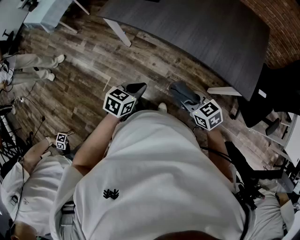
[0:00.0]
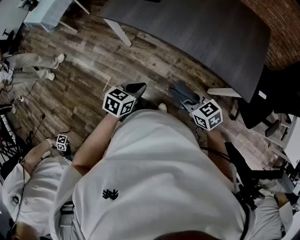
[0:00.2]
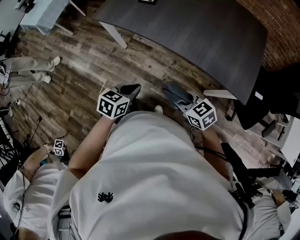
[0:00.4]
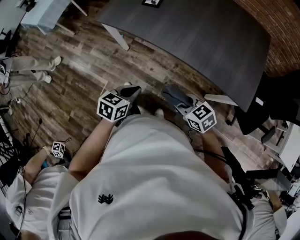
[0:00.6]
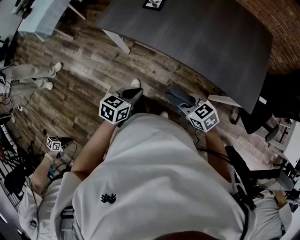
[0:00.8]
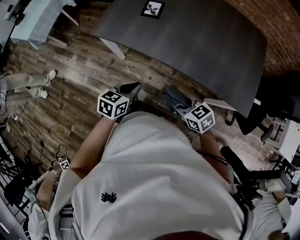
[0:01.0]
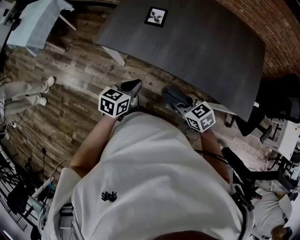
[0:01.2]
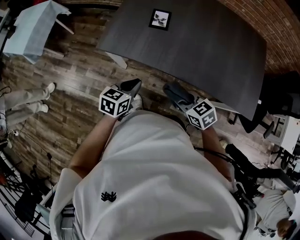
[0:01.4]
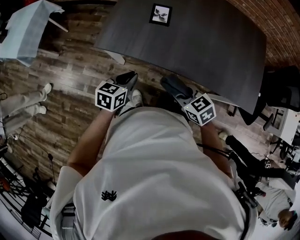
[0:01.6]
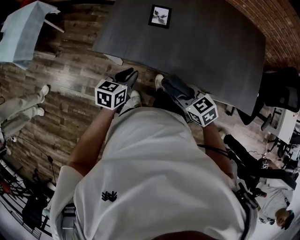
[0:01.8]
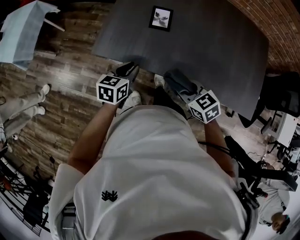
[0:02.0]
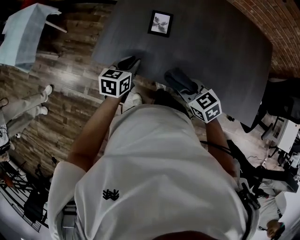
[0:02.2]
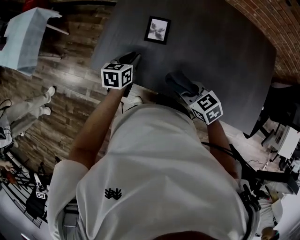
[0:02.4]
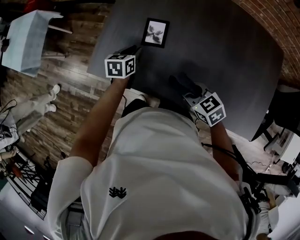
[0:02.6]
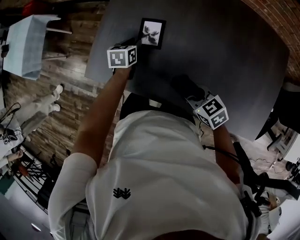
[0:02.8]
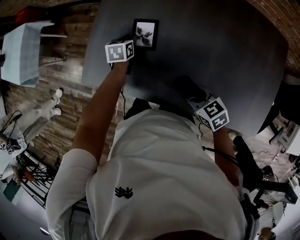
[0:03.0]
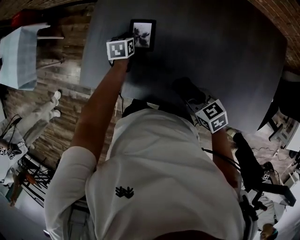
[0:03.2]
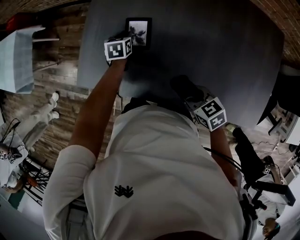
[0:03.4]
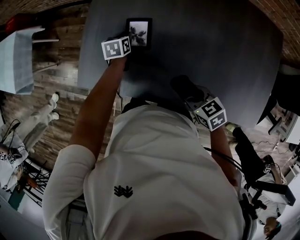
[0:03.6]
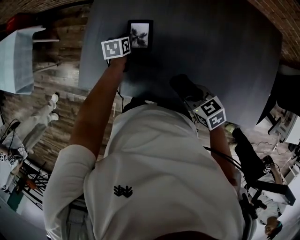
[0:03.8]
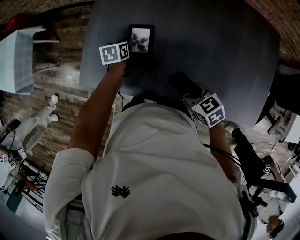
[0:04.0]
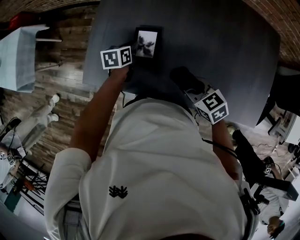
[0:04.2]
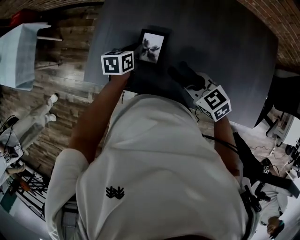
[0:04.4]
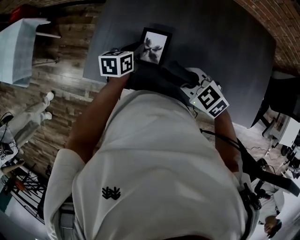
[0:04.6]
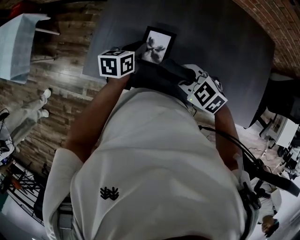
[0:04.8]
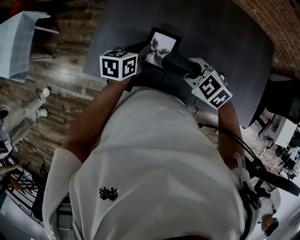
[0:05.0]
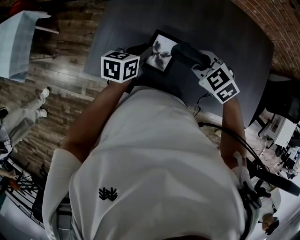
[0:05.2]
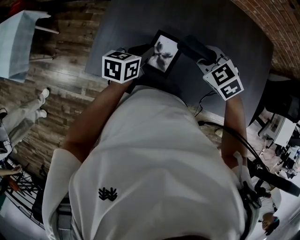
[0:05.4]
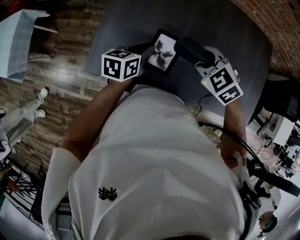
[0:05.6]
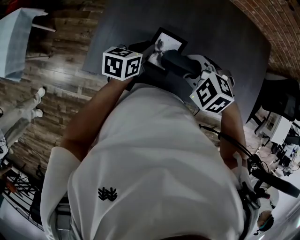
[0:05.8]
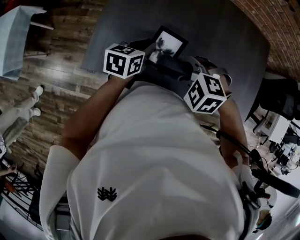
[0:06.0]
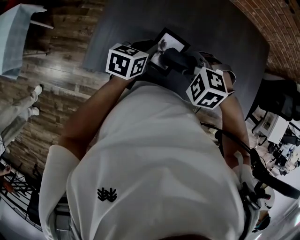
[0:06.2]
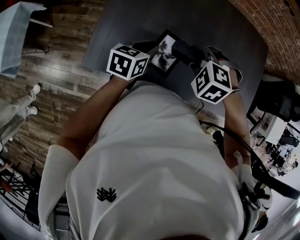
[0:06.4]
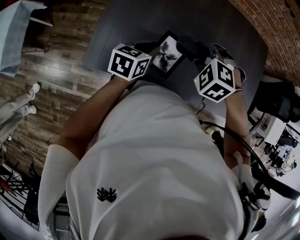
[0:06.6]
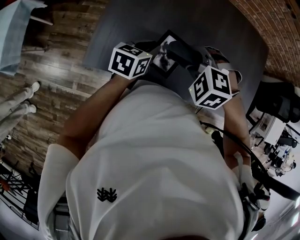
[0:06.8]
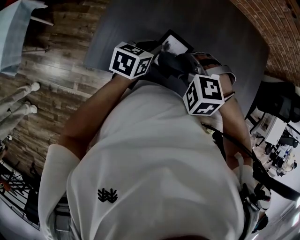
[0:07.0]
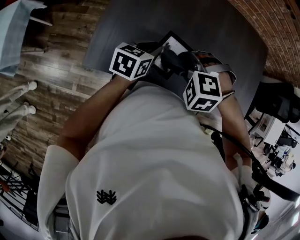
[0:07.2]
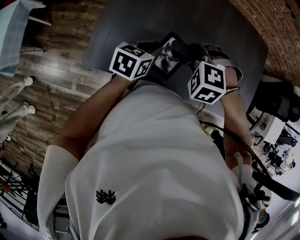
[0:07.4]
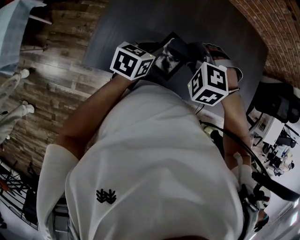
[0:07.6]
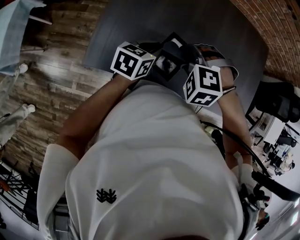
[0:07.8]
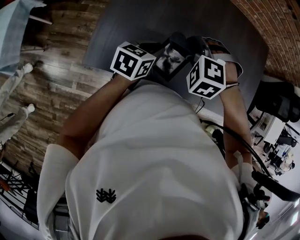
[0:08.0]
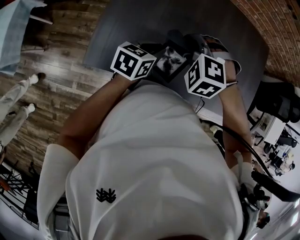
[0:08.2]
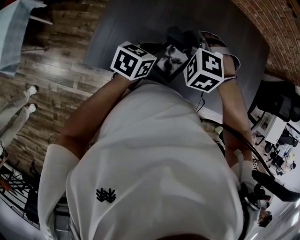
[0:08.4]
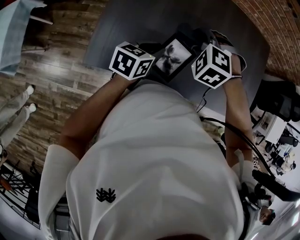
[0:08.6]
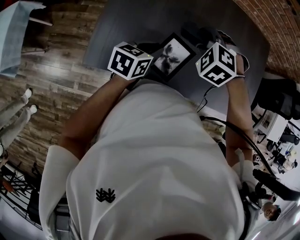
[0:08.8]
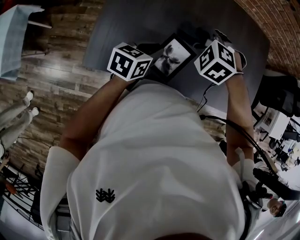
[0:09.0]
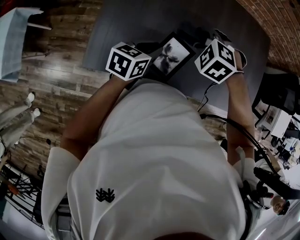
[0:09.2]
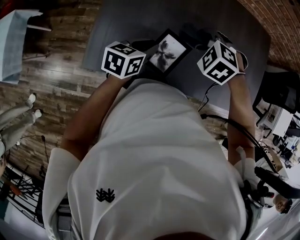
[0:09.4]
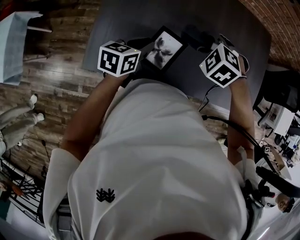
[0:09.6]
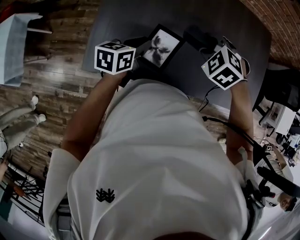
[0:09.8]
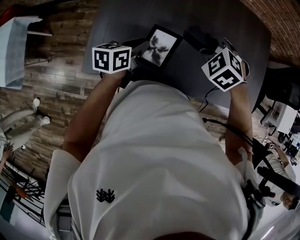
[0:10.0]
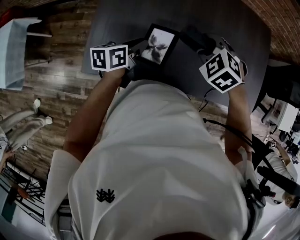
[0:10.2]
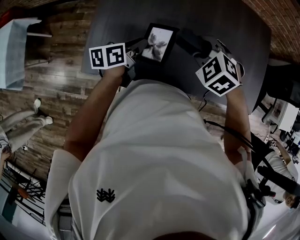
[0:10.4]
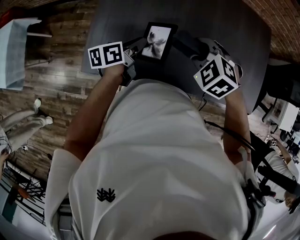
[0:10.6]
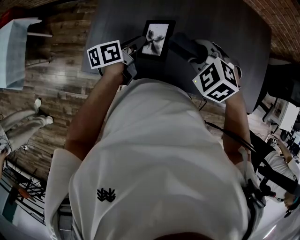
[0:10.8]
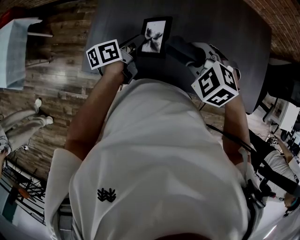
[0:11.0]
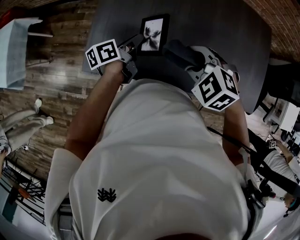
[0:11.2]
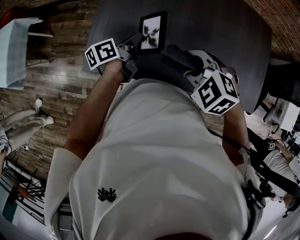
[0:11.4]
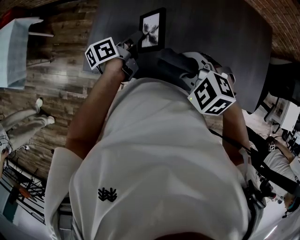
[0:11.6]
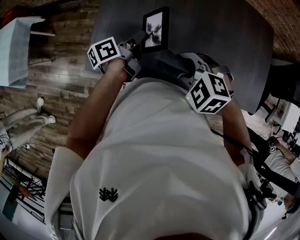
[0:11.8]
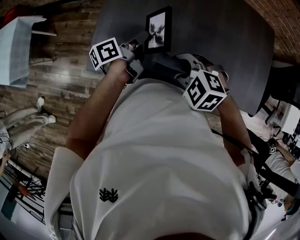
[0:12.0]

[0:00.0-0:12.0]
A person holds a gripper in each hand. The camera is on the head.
0:00.0 to 0:01.6: Both grippers travel together forward and to the left, roughly 40 cm.
0:01.6 to 0:03.0: The left gripper moves forward, about 40 cm, and changes its angle by roughly 30 degrees; the right gripper goes roughly 25 cm forward and to the right.
0:03.0 to 0:04.4: The left gripper heads backward and upward, covering some 10 cm; the right gripper shifts about 5 cm upward.
0:04.4 to 0:06.0: The right gripper shifts approximately 10 cm to the left, and rotates around the line of its fingers by some 40 degrees, counterclockwise from behind. Meanwhile the left gripper moves upward and backward, approximately 10 cm.
0:06.0 to 0:07.6: The right gripper changes place by some 5 cm.
0:07.6 to 0:09.0: The right gripper heads forward, covering approximately 5 cm.
0:09.0 to 0:10.4: The right gripper shifts by approximately 5 cm. The left gripper swivels some 30 degrees.
0:10.4 to 0:12.0: The left gripper turns by some 30 degrees. Meanwhile the right gripper moves backward and to the left, some 10 cm.

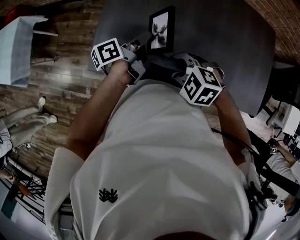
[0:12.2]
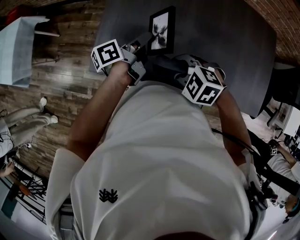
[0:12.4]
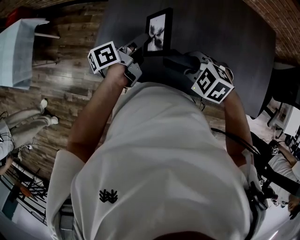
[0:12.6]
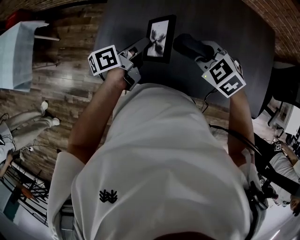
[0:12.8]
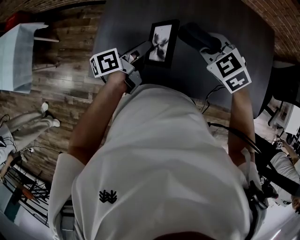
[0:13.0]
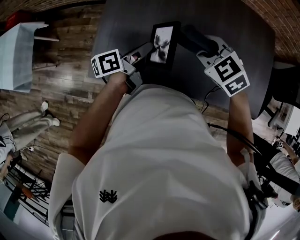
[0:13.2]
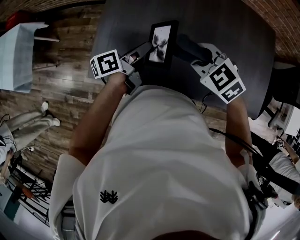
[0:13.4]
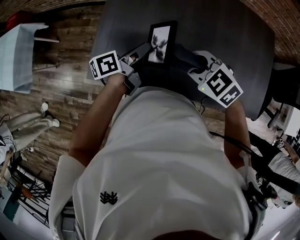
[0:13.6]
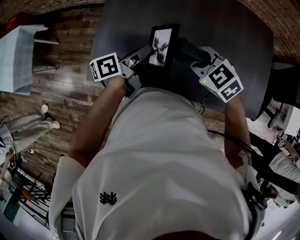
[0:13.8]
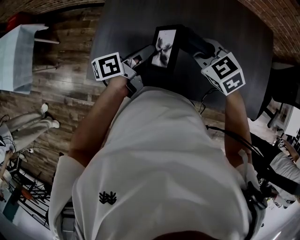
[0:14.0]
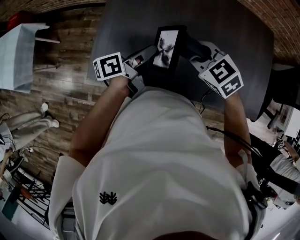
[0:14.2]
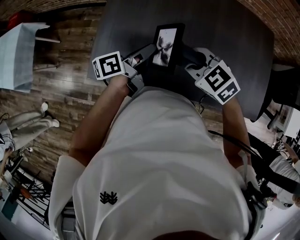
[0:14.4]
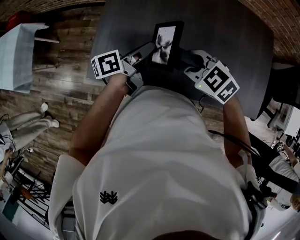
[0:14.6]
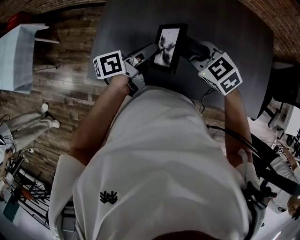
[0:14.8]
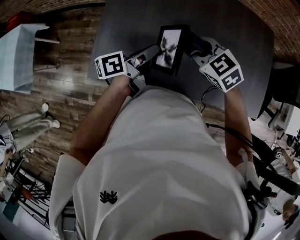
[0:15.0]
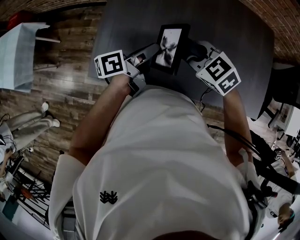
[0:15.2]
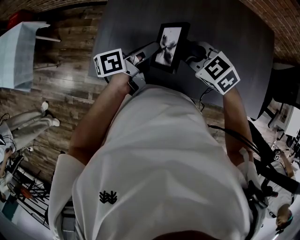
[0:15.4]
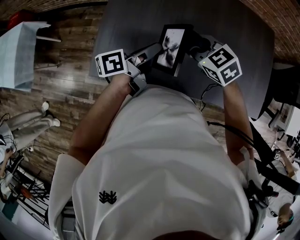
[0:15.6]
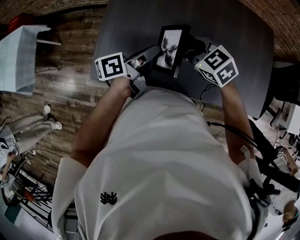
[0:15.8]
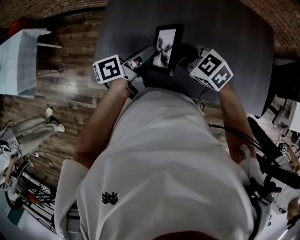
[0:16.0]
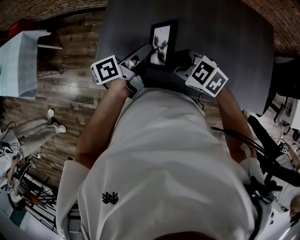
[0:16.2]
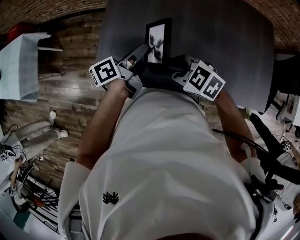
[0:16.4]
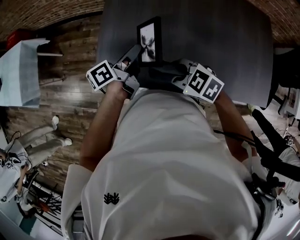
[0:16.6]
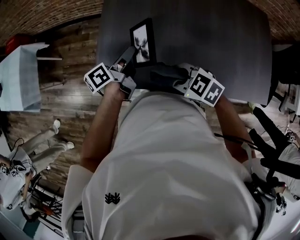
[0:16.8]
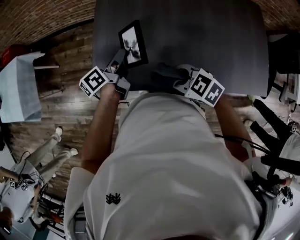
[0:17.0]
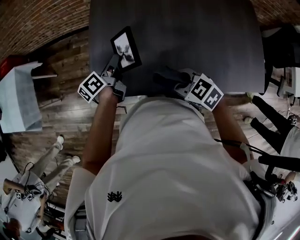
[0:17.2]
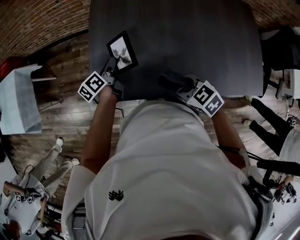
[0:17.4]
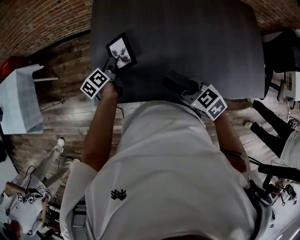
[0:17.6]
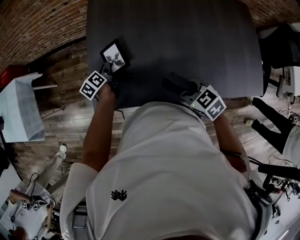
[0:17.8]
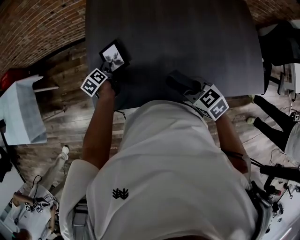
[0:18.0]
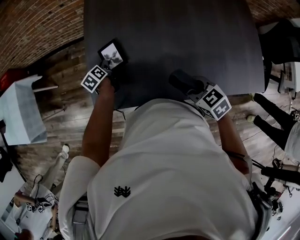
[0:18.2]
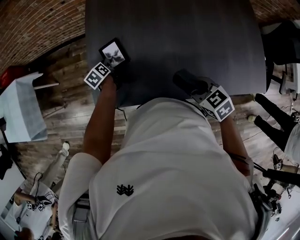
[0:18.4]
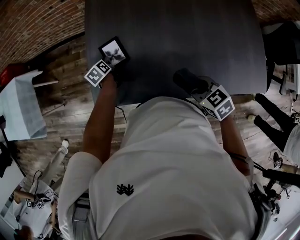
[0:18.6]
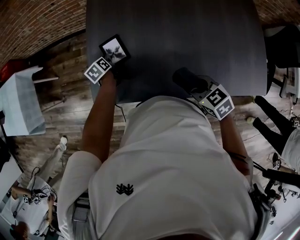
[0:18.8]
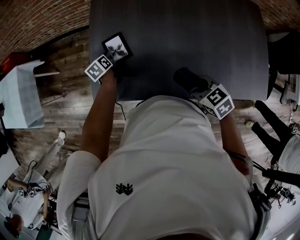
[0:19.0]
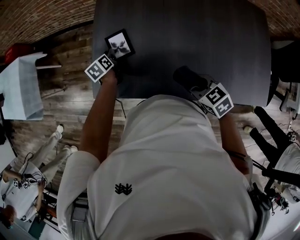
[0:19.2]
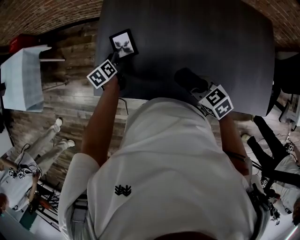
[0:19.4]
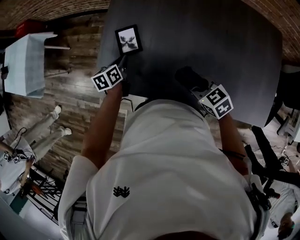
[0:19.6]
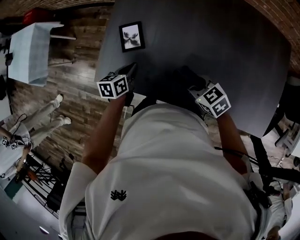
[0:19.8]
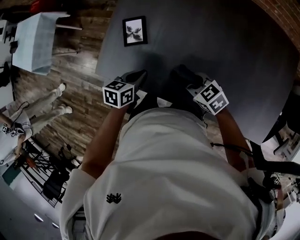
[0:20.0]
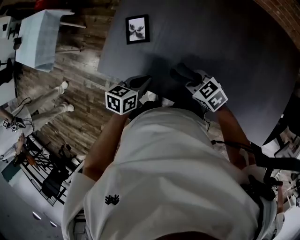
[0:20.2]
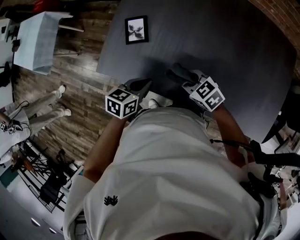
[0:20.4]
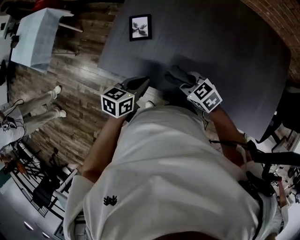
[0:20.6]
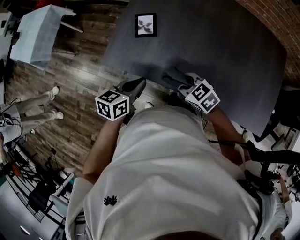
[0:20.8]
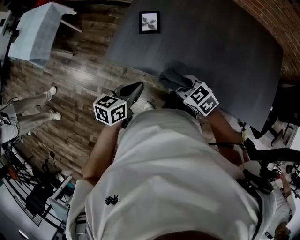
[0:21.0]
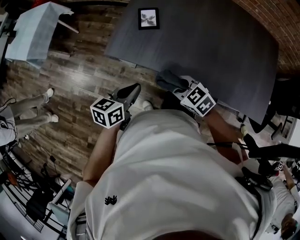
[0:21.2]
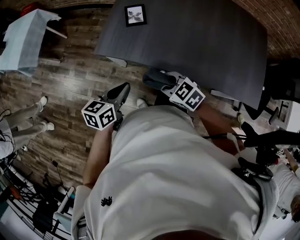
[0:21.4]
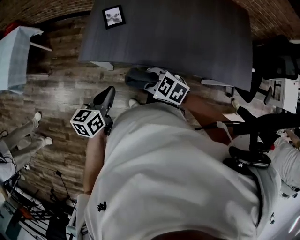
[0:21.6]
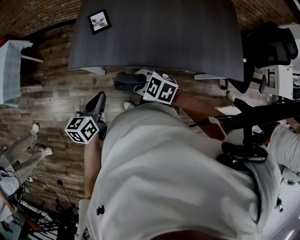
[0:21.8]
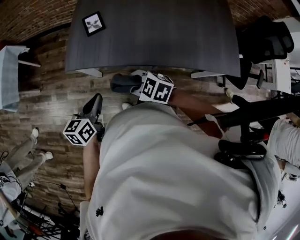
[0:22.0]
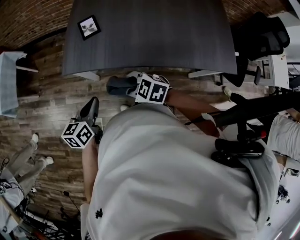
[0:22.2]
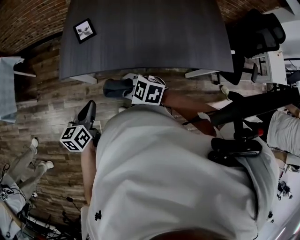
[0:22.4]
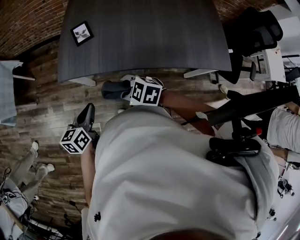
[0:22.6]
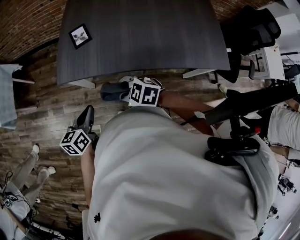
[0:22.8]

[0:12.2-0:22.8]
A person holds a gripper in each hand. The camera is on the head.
0:12.2 to 0:13.8: The right gripper travels to the right and forward by some 10 cm, and changes its angle by approximately 20 degrees.
0:13.8 to 0:15.2: The grippers stay close to where they were, moving slightly.
0:15.2 to 0:16.8: The right gripper moves backward, about 10 cm; the left gripper is displaced to the left by some 5 cm.
0:16.8 to 0:18.2: The left gripper is displaced downward, forward and to the left by approximately 25 cm, and tilts its fingers about 30 degrees downward. The right gripper shifts about 10 cm to the right, and changes its angle by about 30 degrees.
0:18.2 to 0:19.8: The left gripper travels backward and to the right by about 15 cm; the right gripper is displaced forward by approximately 5 cm, and changes its angle by some 20 degrees.
0:19.8 to 0:21.2: The left gripper moves backward and to the left, roughly 25 cm. Meanwhile the right gripper shifts about 25 cm to the left and backward.
0:21.2 to 0:22.8: Both grippers move backward, roughly 5 cm.

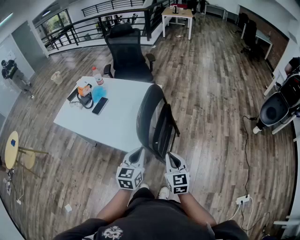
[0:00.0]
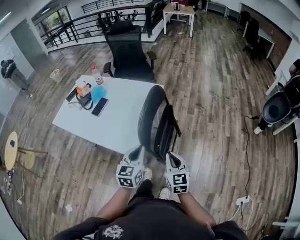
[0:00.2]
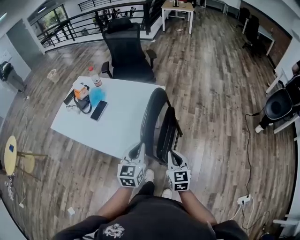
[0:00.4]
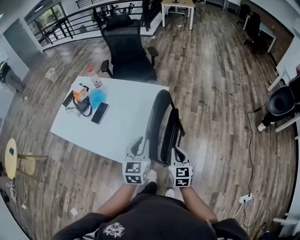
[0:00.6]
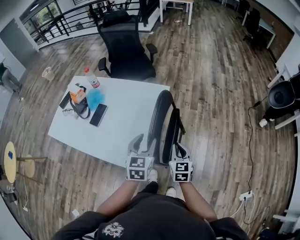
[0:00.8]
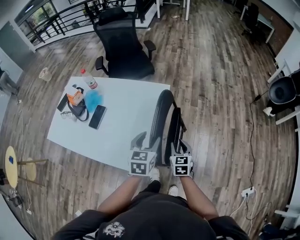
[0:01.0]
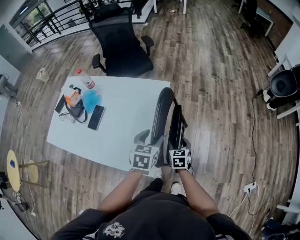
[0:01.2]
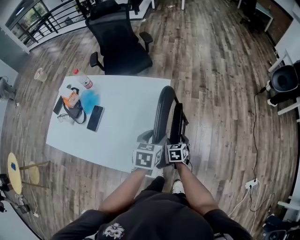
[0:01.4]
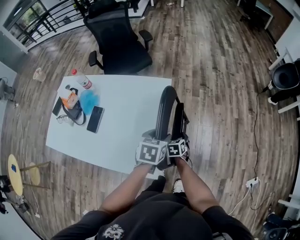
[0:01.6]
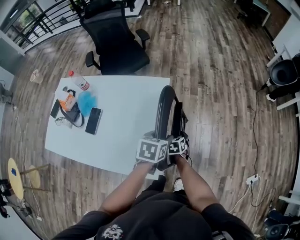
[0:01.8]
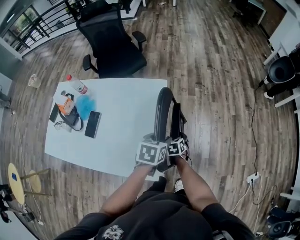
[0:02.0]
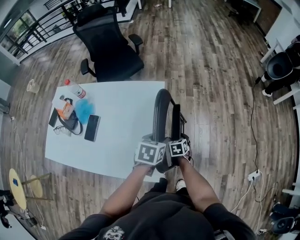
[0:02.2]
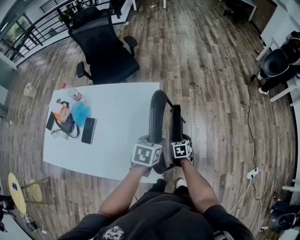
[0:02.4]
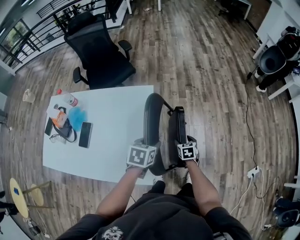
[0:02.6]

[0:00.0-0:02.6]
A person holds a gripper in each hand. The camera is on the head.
0:00.0 to 0:01.2: The right gripper heads forward and downward, covering some 35 cm, rotates approximately 30 degrees, and opens. The left gripper shifts roughly 25 cm forward, swivels roughly 20 degrees, and opens up.
0:01.2 to 0:02.6: The left gripper changes place by approximately 5 cm, and turns by approximately 20 degrees, while the right gripper is displaced to the right, downward and forward by about 15 cm.
